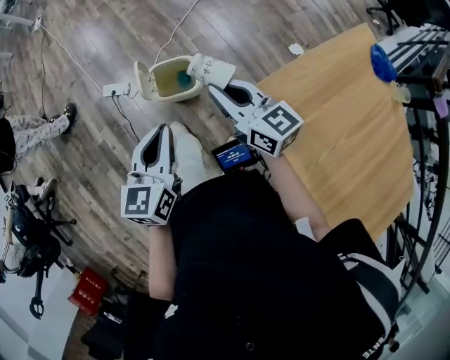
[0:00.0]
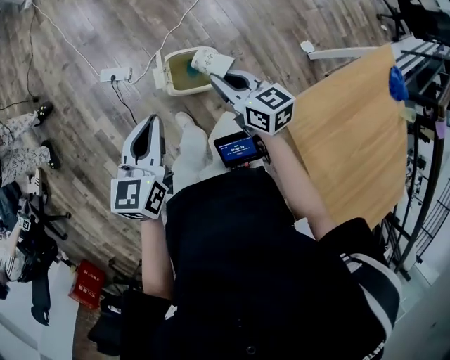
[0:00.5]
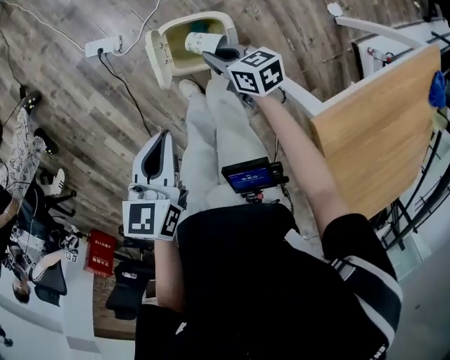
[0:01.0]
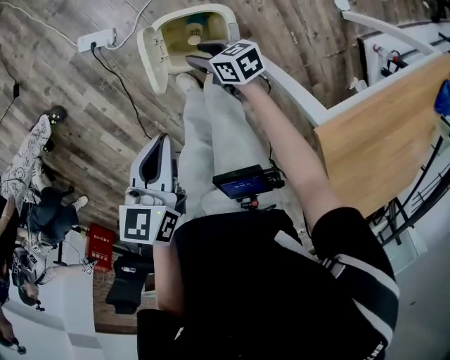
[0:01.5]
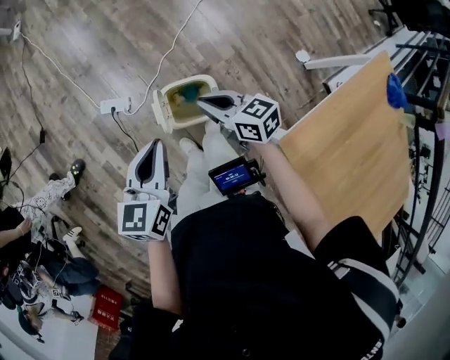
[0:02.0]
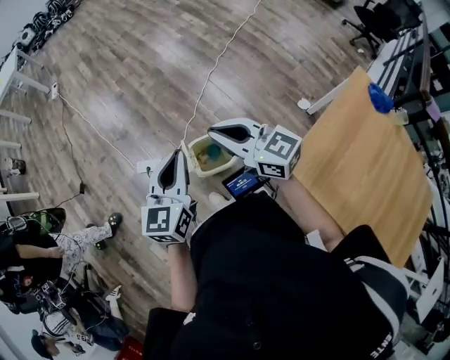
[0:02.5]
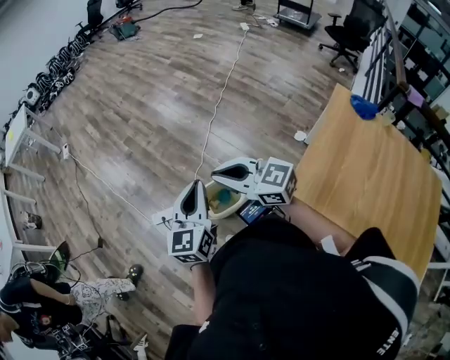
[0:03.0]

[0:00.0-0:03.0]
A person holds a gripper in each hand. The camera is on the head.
0:00.0 to 0:01.5: The left gripper goes some 30 cm downward, forward and to the left, and turns by approximately 30 degrees; the right gripper is displaced downward and forward by approximately 50 cm, tilts its fingers some 30 degrees downward, and opens.
0:01.5 to 0:03.0: The right gripper travels upward by some 60 cm, tilts its fingers about 30 degrees upward, and closes up. Meanwhile the left gripper travels upward by roughly 35 cm, and tips its fingers upward by roughly 40 degrees.

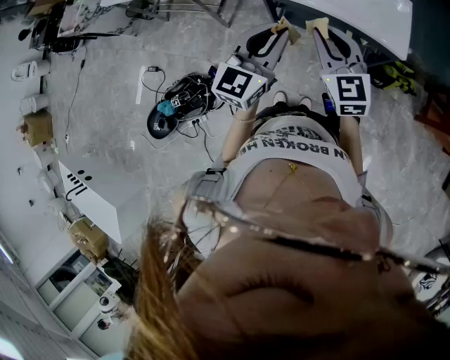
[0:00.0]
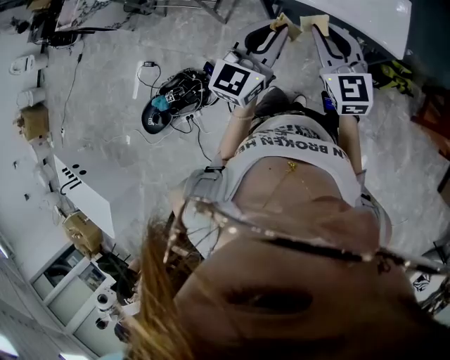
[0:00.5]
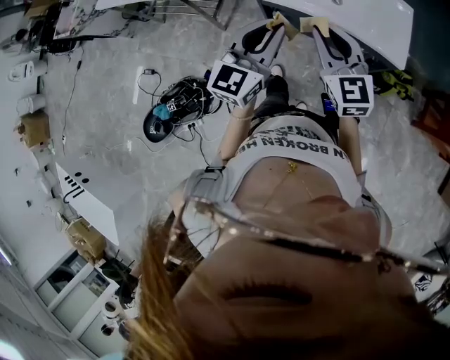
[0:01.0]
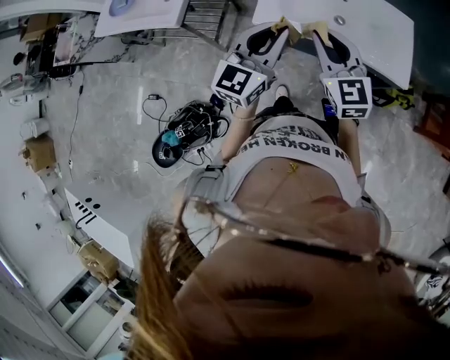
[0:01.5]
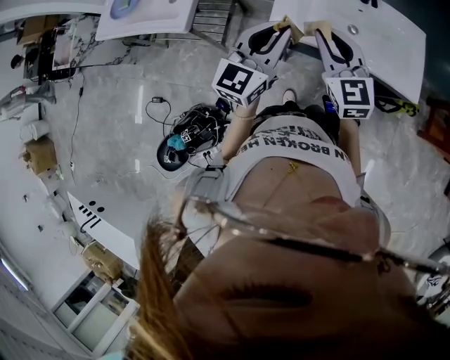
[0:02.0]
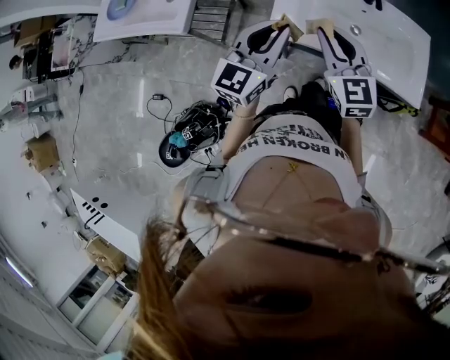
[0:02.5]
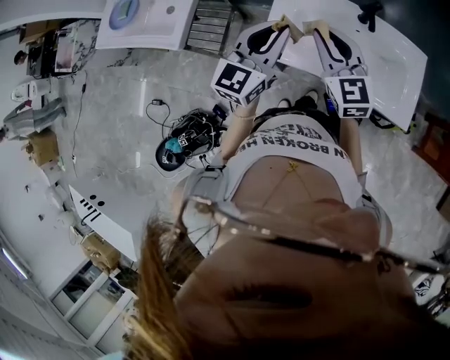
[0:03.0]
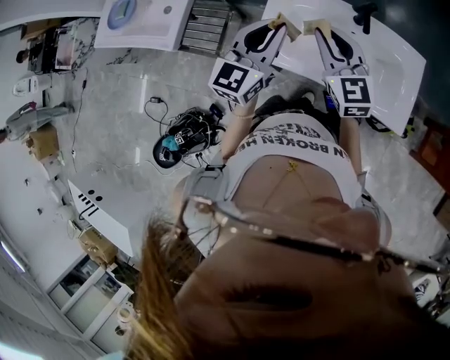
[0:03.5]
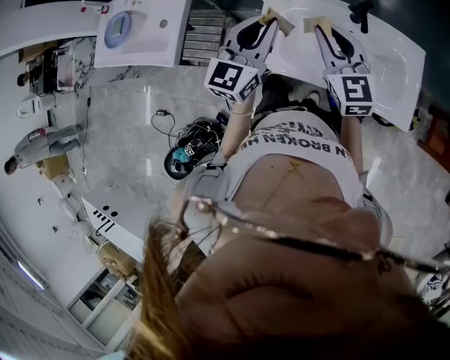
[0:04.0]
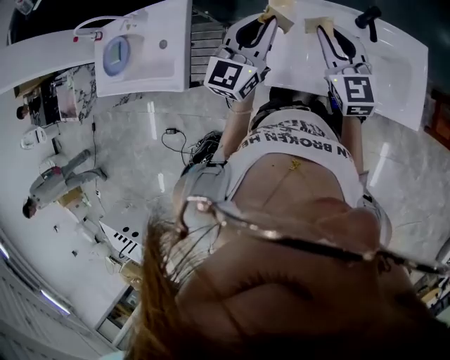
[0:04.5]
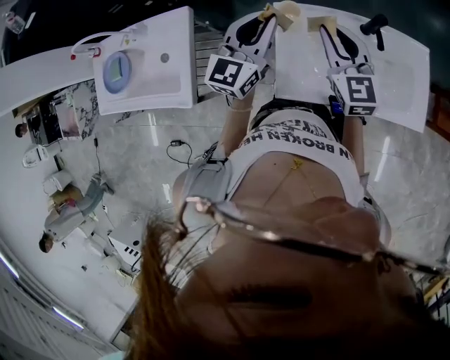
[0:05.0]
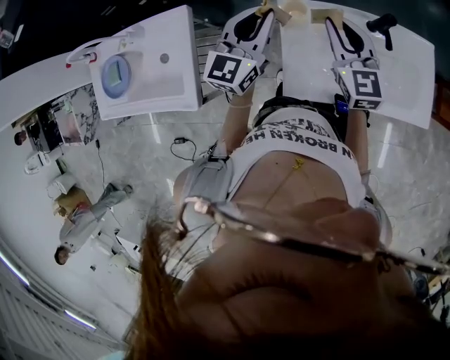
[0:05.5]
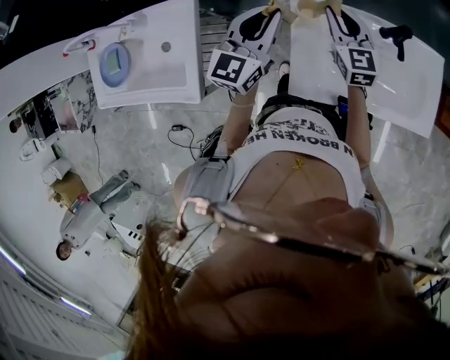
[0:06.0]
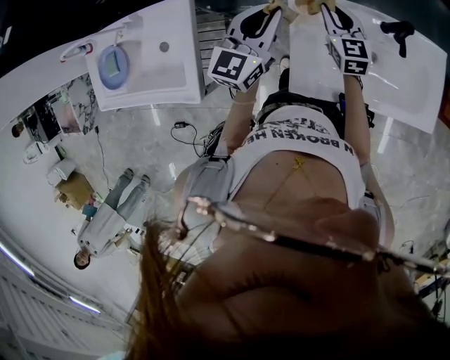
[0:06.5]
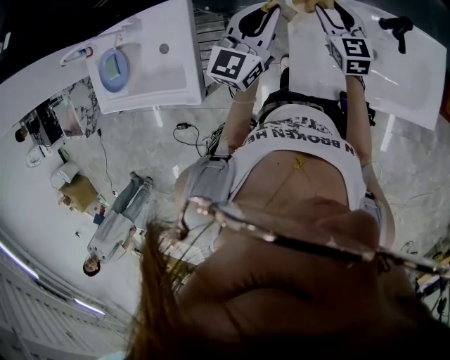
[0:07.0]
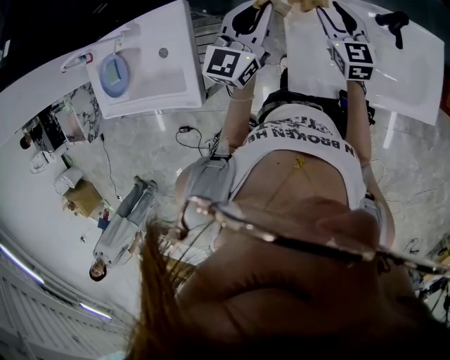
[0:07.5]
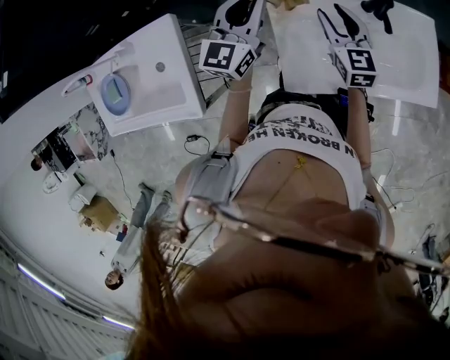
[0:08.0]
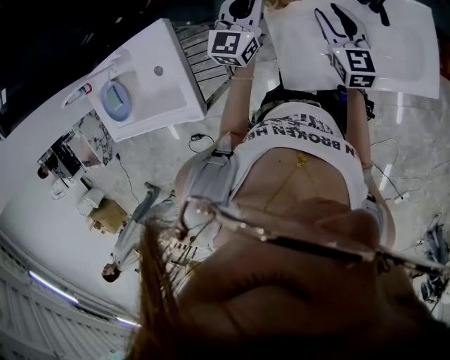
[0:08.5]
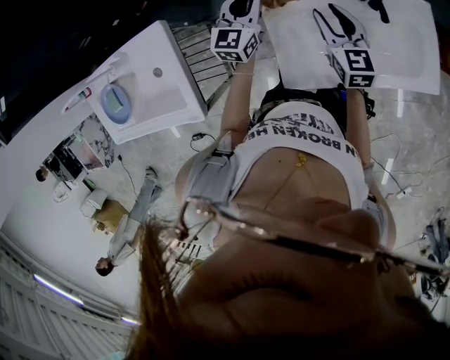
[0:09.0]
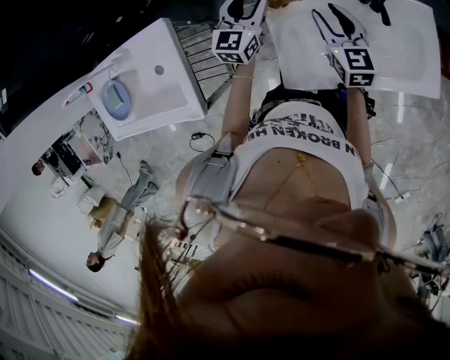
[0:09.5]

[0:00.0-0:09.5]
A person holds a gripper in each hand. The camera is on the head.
0:00.0 to 0:02.0: Both grippers travel together forward and to the left, about 25 cm.
0:02.0 to 0:04.0: The left gripper is displaced forward by some 20 cm, while the right gripper shifts roughly 20 cm forward and to the right.
0:04.0 to 0:05.5: The two grippers go approximately 20 cm forward and to the left.
0:05.5 to 0:07.5: The right gripper moves downward and forward, about 15 cm, and opens.
0:07.5 to 0:09.5: The left gripper is displaced downward and forward by roughly 15 cm, and opens up.

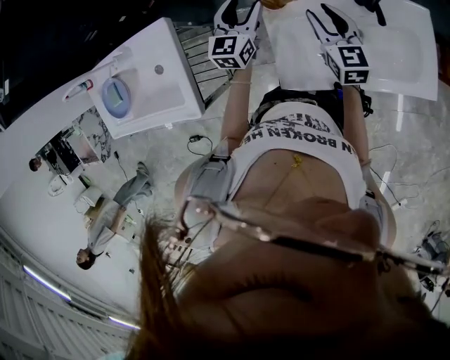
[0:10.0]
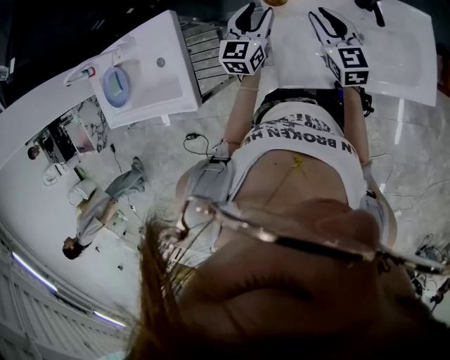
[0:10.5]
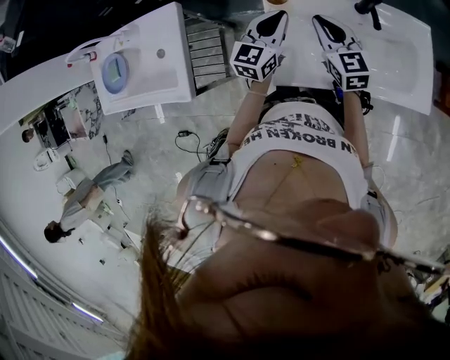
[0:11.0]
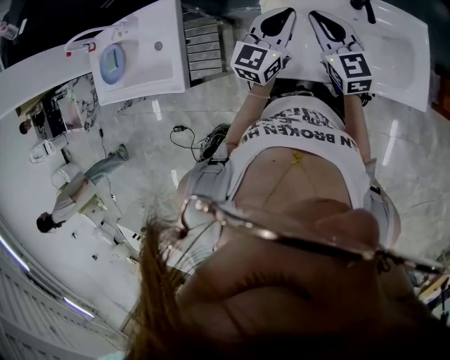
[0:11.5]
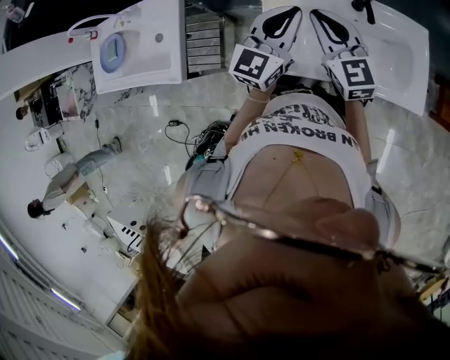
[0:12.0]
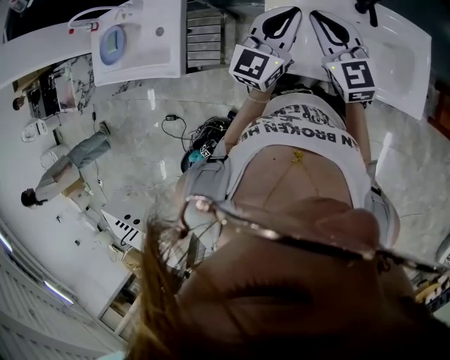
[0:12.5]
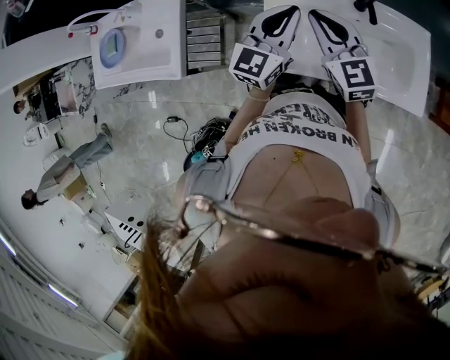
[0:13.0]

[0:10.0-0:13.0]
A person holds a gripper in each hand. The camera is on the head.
0:10.0 to 0:11.5: The right gripper moves upward and backward, about 10 cm, and closes; the left gripper travels to the right, backward and upward by approximately 20 cm, and closes up.
0:11.5 to 0:13.0: The grippers move only a little.

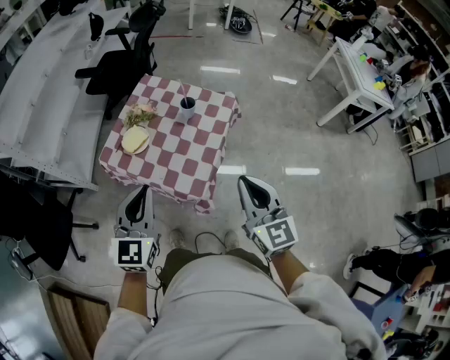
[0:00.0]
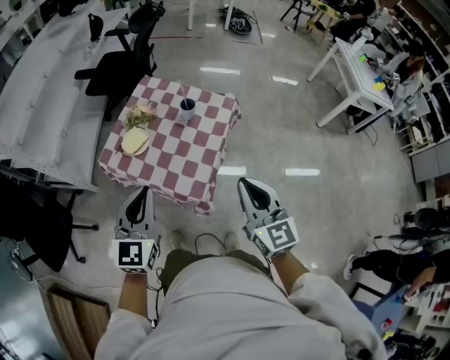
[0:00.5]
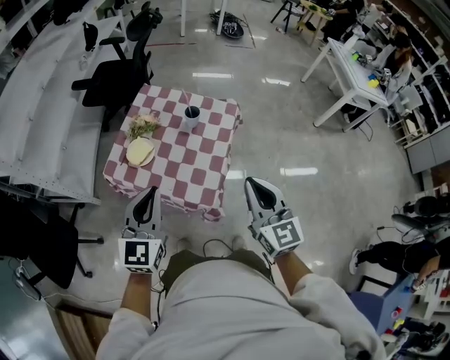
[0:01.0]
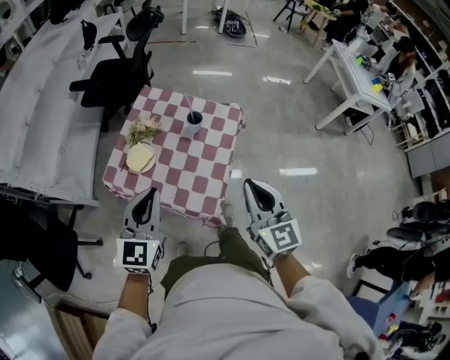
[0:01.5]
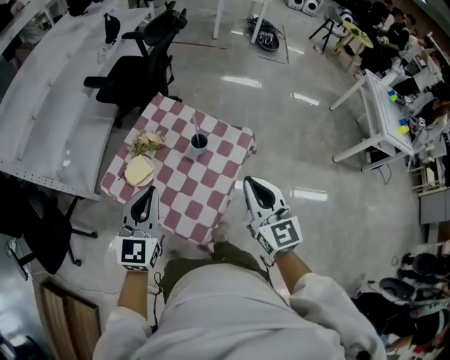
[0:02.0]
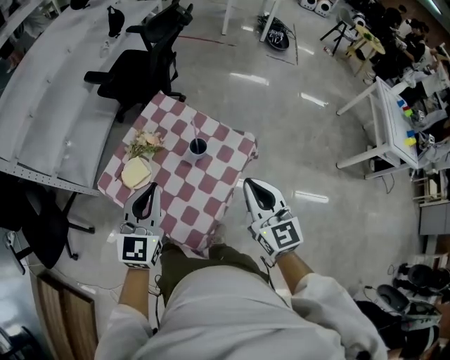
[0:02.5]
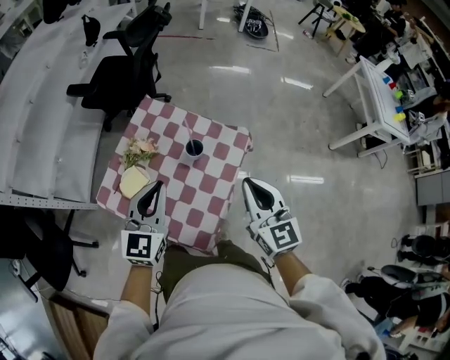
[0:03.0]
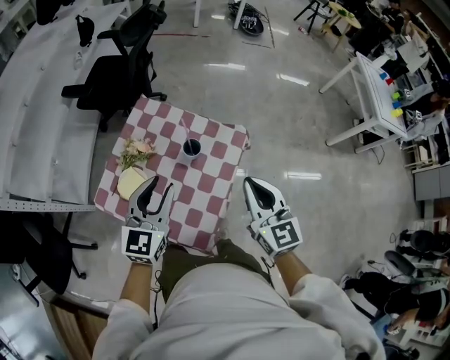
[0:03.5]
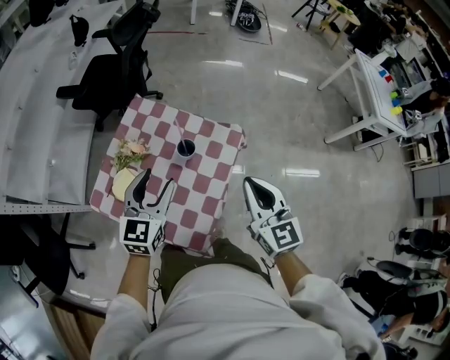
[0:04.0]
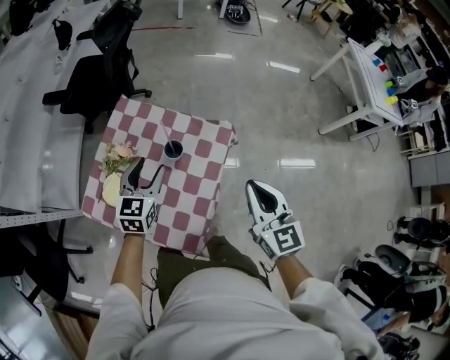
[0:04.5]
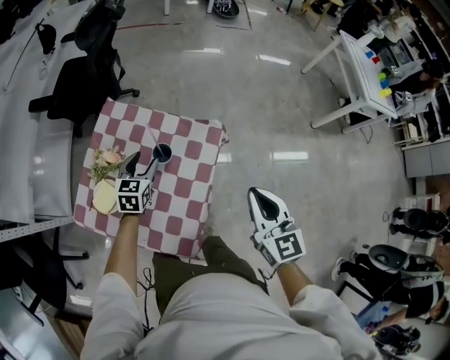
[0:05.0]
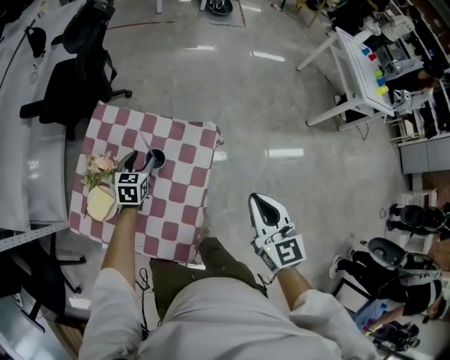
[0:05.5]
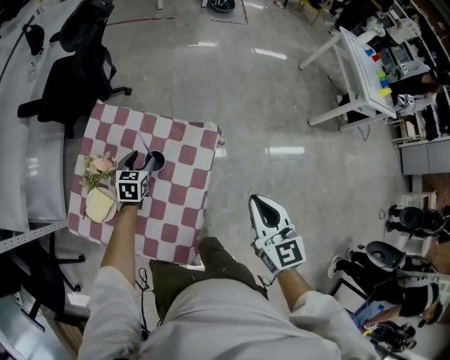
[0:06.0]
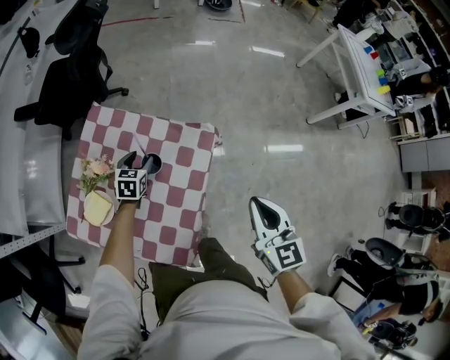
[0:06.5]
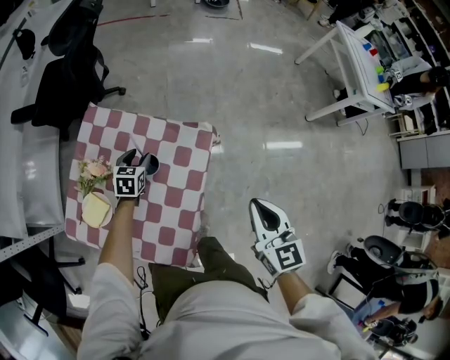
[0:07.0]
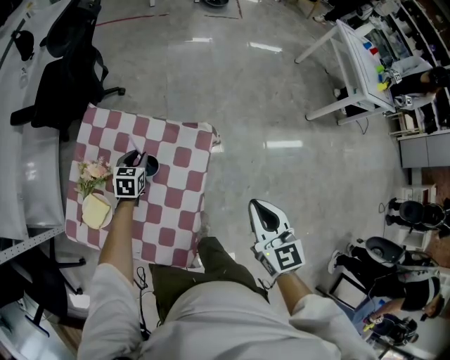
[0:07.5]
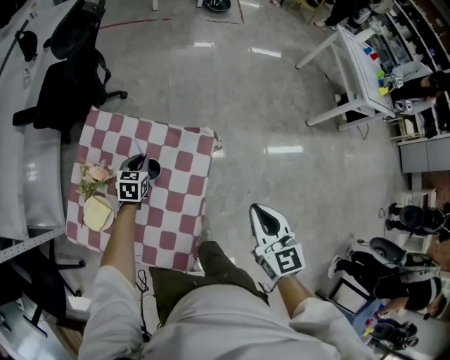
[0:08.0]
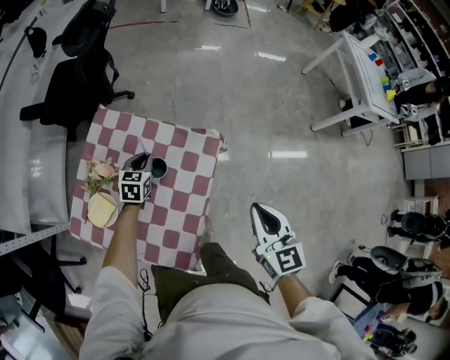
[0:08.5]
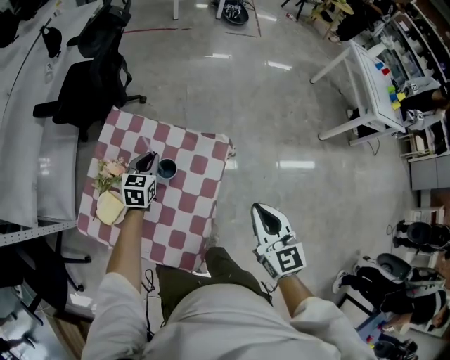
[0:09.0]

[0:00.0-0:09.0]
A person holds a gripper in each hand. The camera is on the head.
0:00.0 to 0:02.0: Both grippers move forward, some 20 cm.
0:02.0 to 0:04.5: The right gripper heads to the right and forward, covering about 10 cm. The left gripper goes about 20 cm forward and downward, and opens up.
0:04.5 to 0:07.0: The right gripper goes about 10 cm to the right and downward. Meanwhile the left gripper travels downward and forward by roughly 25 cm, and rotates roughly 20 degrees.
0:07.0 to 0:09.0: The left gripper is displaced upward by about 10 cm, and closes.

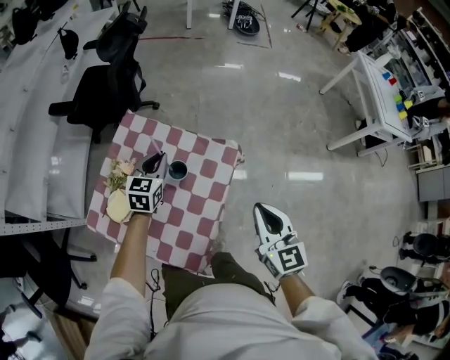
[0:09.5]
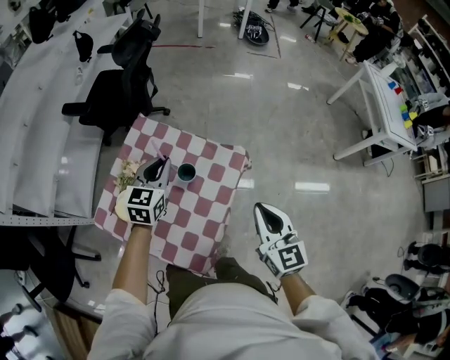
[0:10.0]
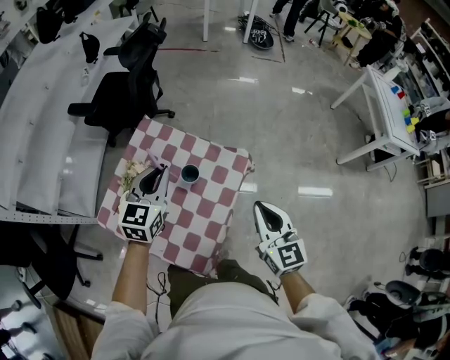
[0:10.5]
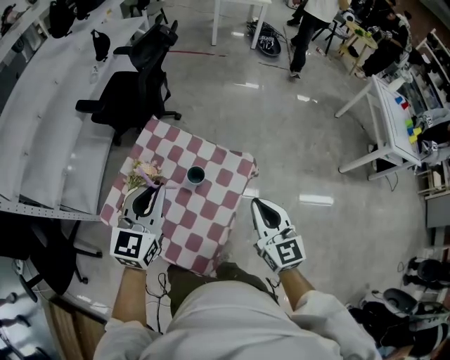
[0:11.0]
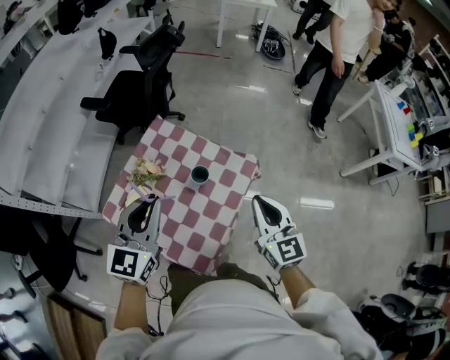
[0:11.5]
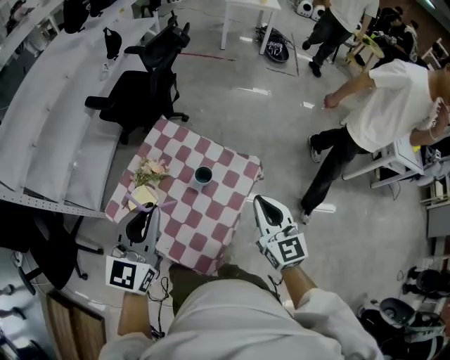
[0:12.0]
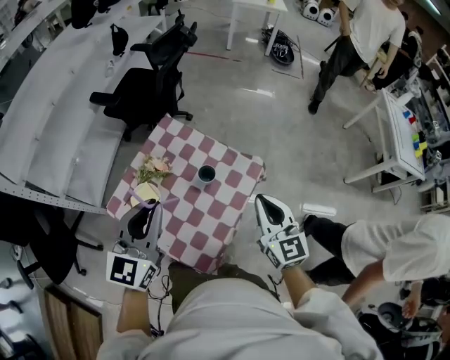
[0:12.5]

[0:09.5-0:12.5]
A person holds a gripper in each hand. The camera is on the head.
0:09.5 to 0:11.0: The right gripper moves roughly 5 cm; the left gripper shifts roughly 25 cm upward and backward.
0:11.0 to 0:12.5: The left gripper is displaced backward by approximately 5 cm.
